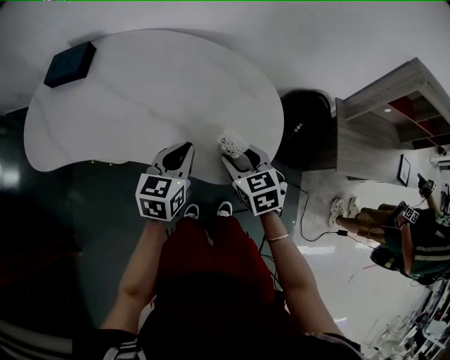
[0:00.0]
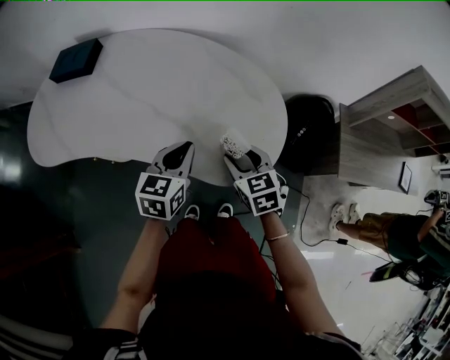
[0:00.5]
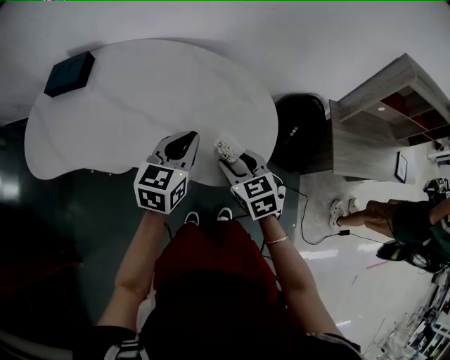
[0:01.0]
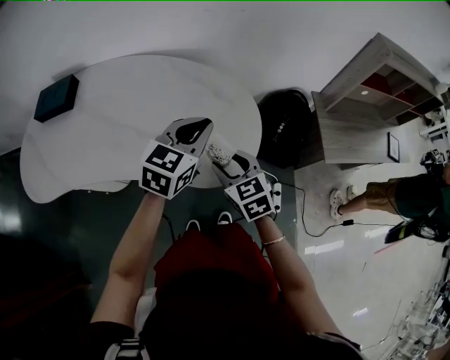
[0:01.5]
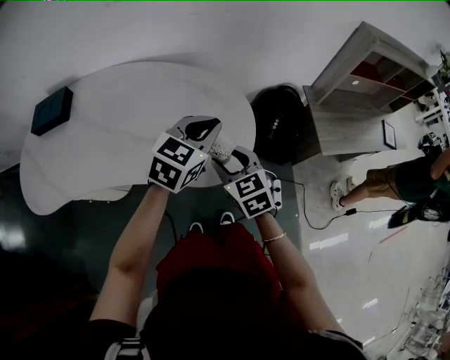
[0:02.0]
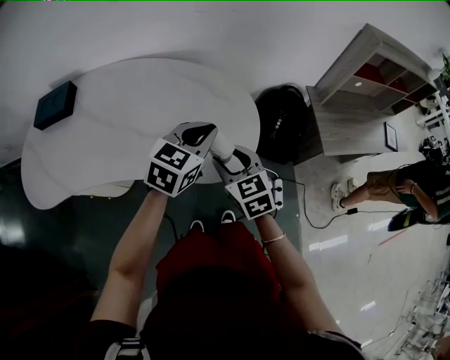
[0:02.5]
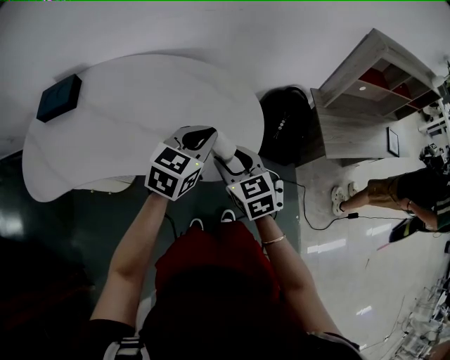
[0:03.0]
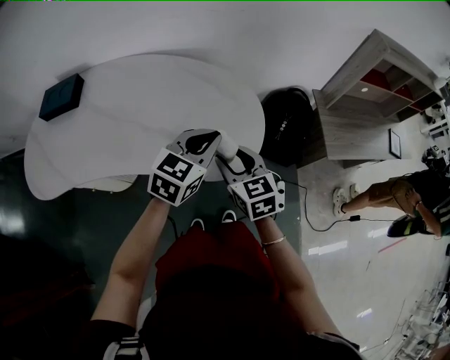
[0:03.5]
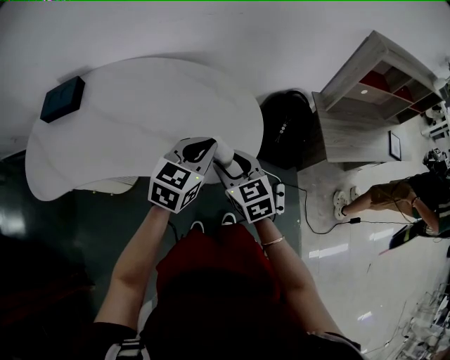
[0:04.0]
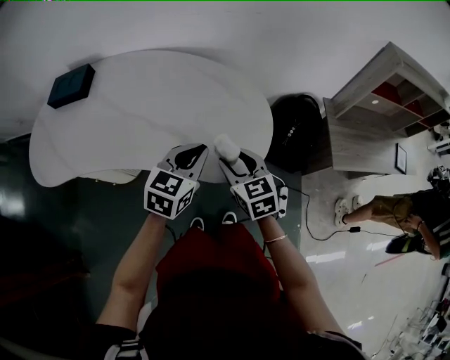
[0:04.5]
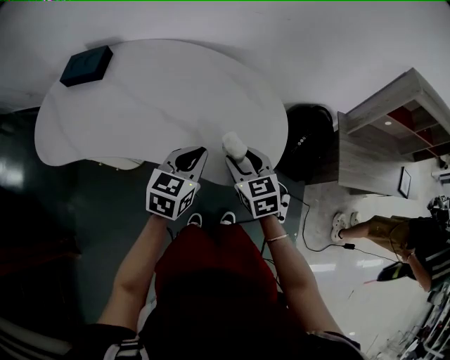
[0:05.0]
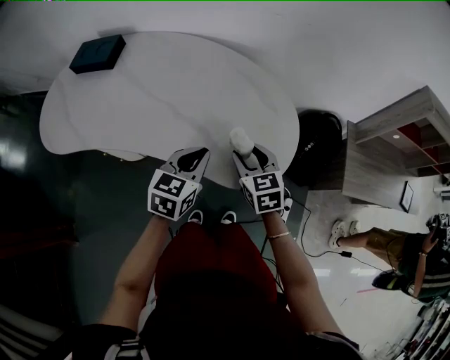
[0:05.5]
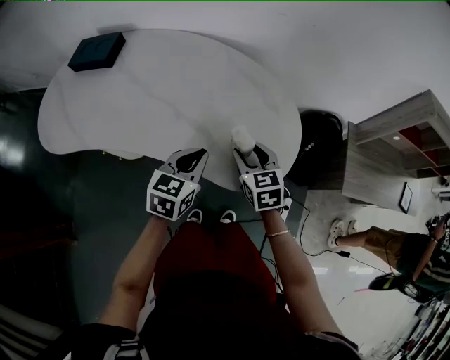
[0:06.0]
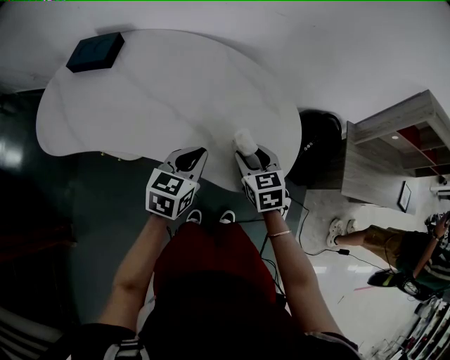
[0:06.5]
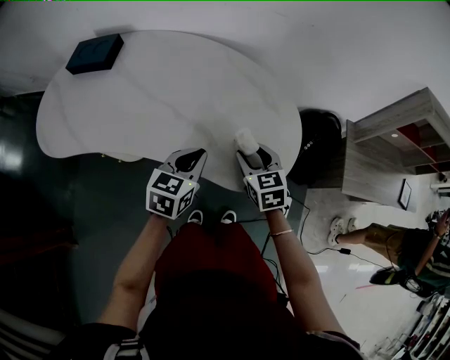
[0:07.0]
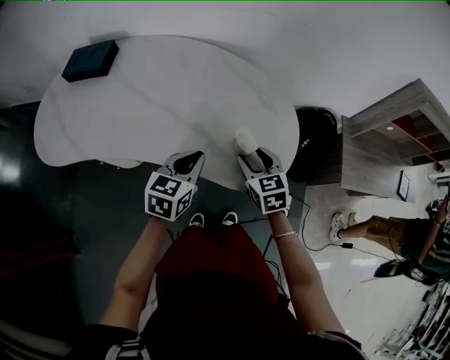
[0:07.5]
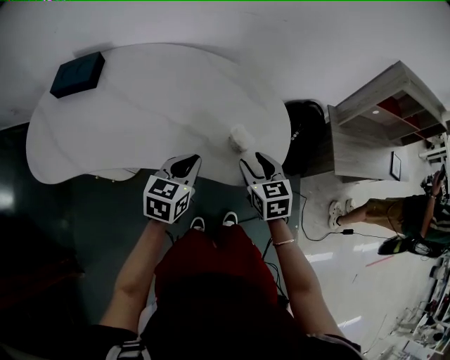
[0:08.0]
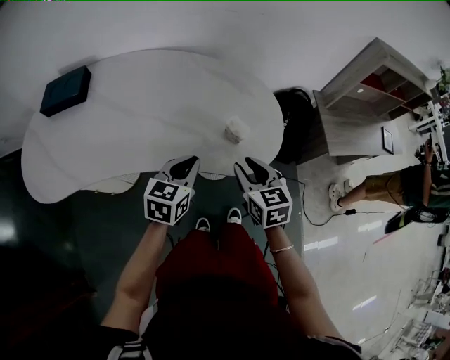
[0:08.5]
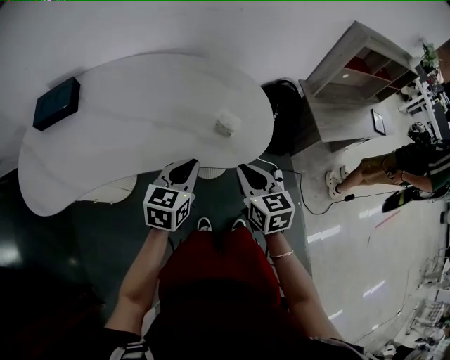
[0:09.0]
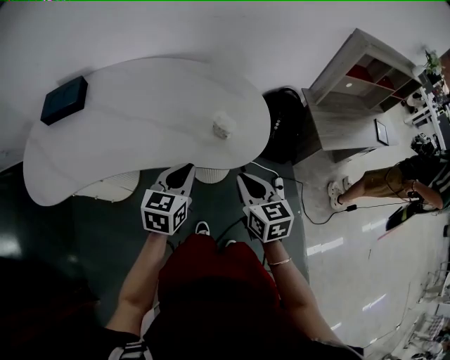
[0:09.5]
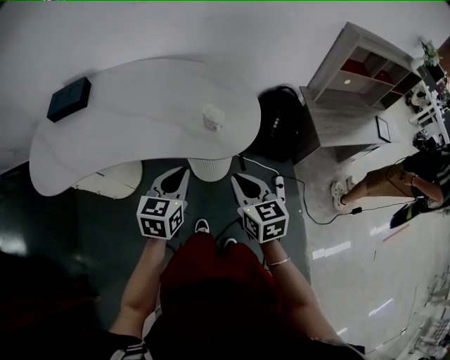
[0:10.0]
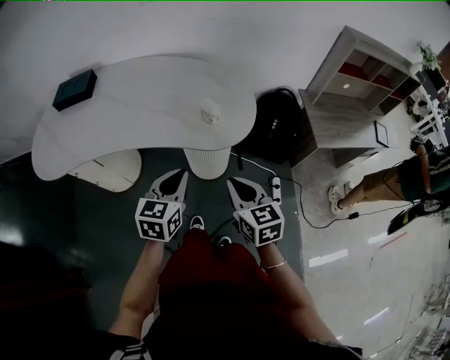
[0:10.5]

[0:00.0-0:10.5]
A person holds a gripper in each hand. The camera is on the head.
0:00.0 to 0:02.0: The left gripper heads to the right and upward, covering roughly 15 cm, and turns by approximately 30 degrees. The right gripper moves roughly 5 cm.
0:02.0 to 0:04.0: The left gripper changes place by some 5 cm.
0:04.0 to 0:06.5: The left gripper moves to the left and downward, about 15 cm, and rotates approximately 20 degrees. Meanwhile the right gripper is displaced forward and downward by approximately 10 cm.
0:06.5 to 0:08.5: The right gripper goes some 10 cm backward.
0:08.5 to 0:10.5: The left gripper travels backward and to the right by about 15 cm, while the right gripper travels backward by roughly 15 cm, and closes its fingers.

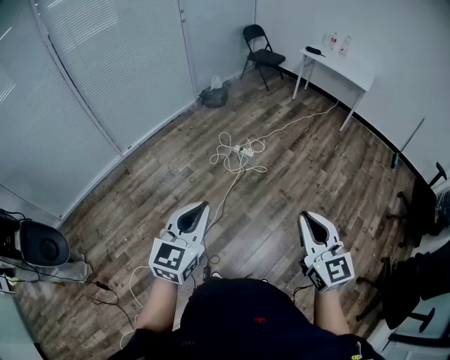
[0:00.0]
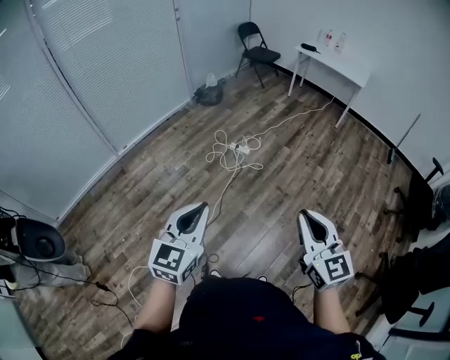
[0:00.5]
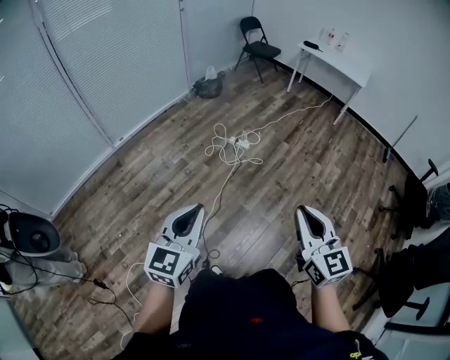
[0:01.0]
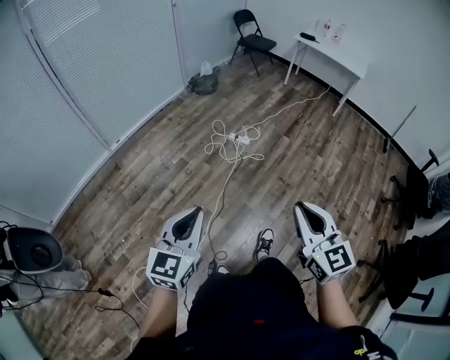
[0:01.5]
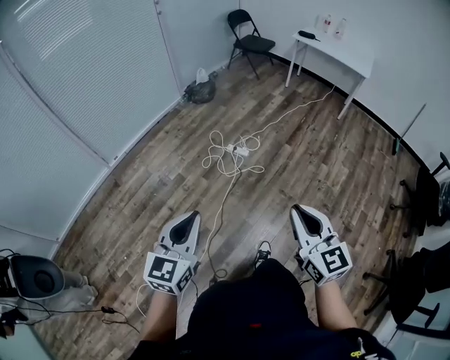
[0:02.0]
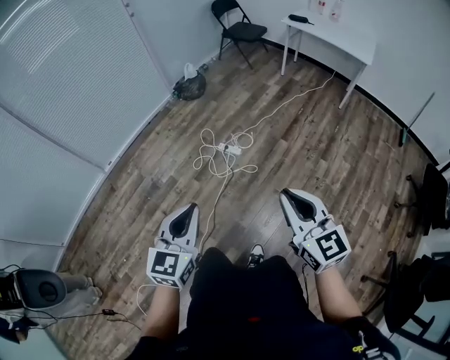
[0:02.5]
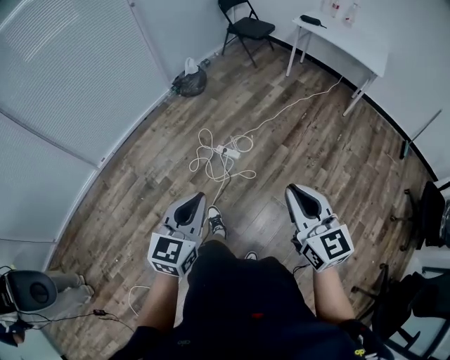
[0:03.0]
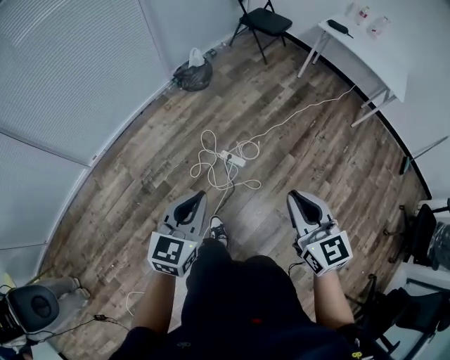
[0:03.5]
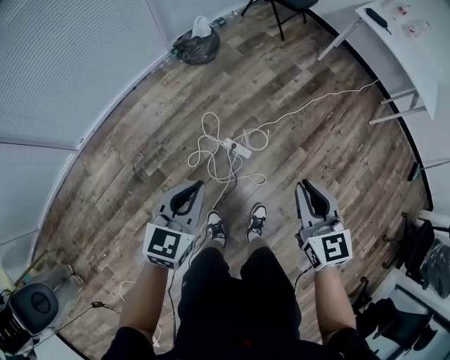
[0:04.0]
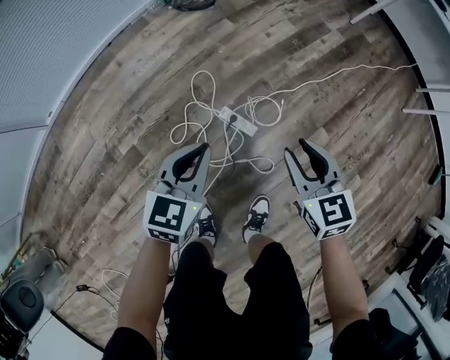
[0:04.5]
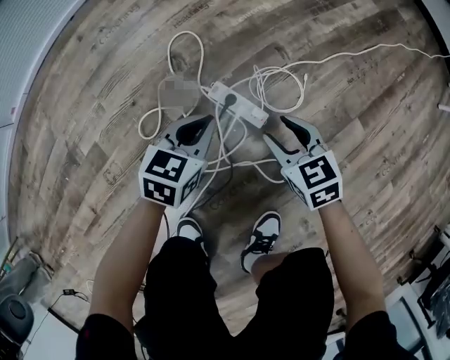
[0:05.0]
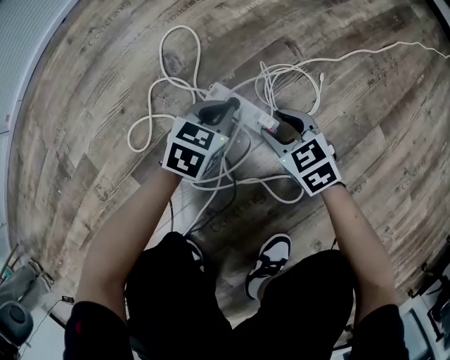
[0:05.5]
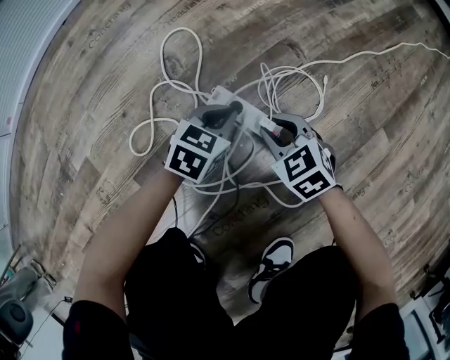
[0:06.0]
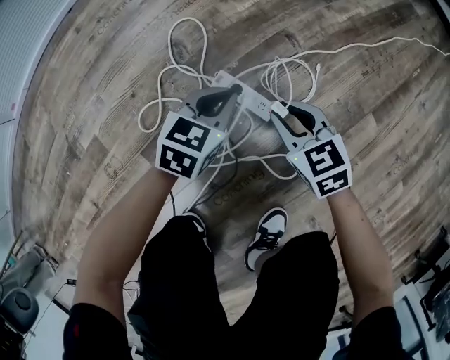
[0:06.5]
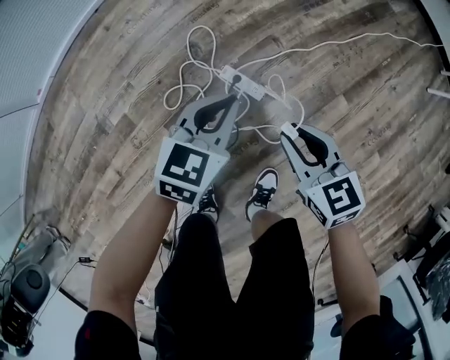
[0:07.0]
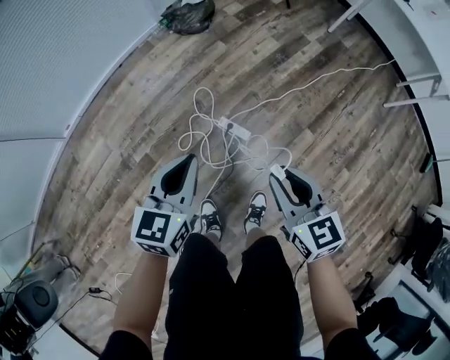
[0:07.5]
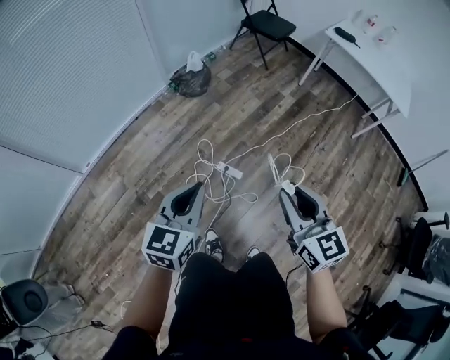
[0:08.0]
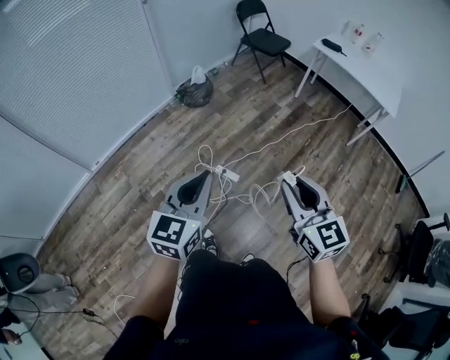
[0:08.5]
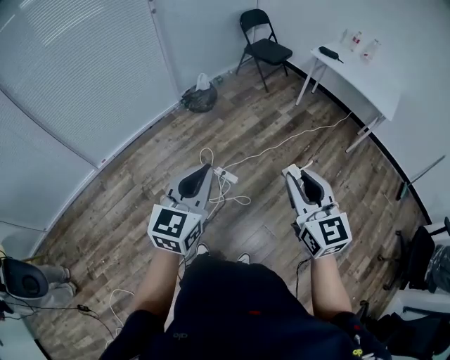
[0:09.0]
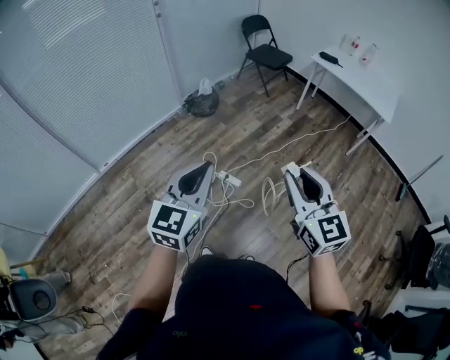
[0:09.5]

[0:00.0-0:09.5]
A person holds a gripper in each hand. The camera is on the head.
0:00.0 to 0:02.0: The two grippers go some 20 cm forward.
0:02.0 to 0:04.0: Both grippers are carried forward, about 70 cm.
0:04.0 to 0:05.5: Both grippers move downward, about 90 cm. The left gripper changes its angle by about 20 degrees; the right gripper rotates roughly 40 degrees, and opens up.
0:05.5 to 0:07.5: The two grippers go some 70 cm upward. The right gripper swivels roughly 30 degrees, and closes up. The left gripper rotates some 30 degrees.
0:07.5 to 0:09.5: The two grippers go approximately 50 cm upward and backward. The left gripper changes its angle by some 20 degrees. The right gripper rotates about 30 degrees.

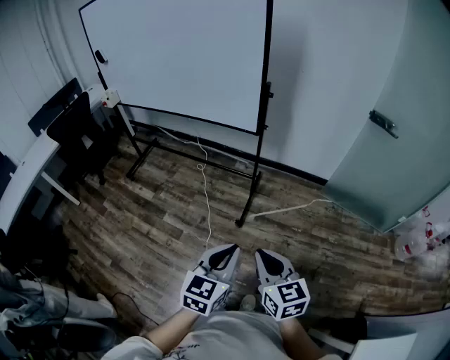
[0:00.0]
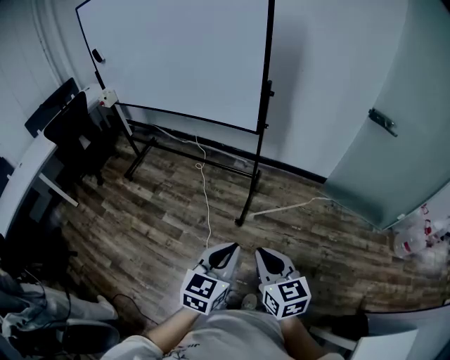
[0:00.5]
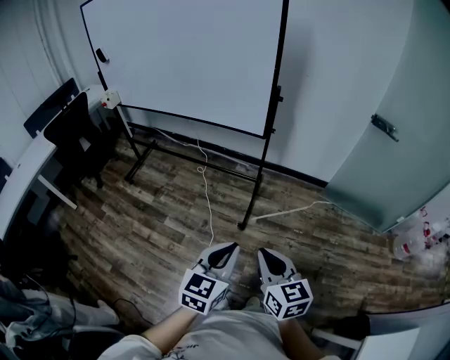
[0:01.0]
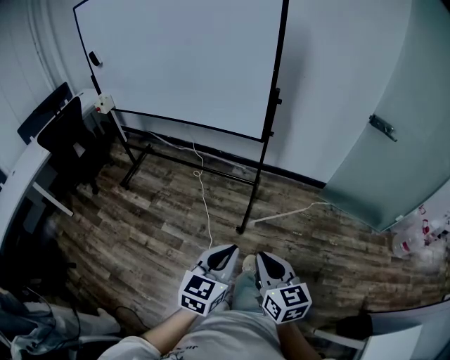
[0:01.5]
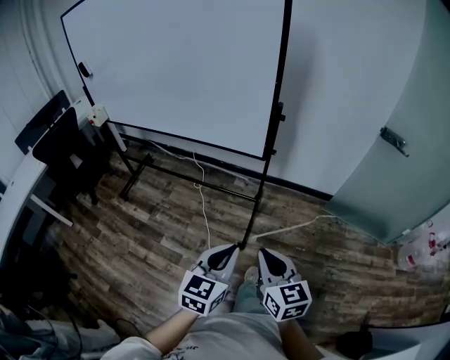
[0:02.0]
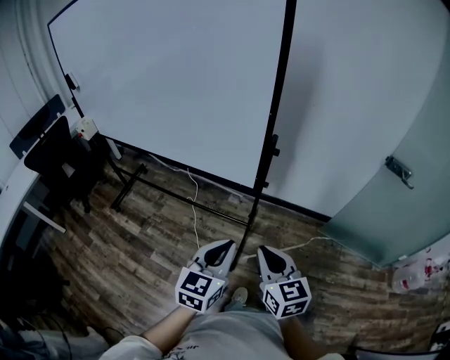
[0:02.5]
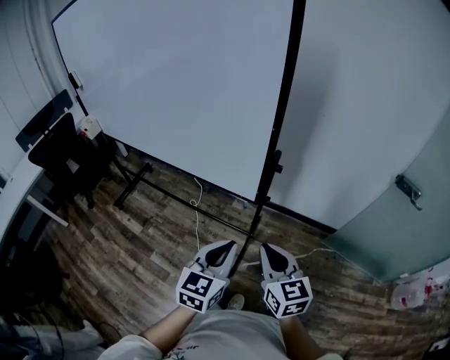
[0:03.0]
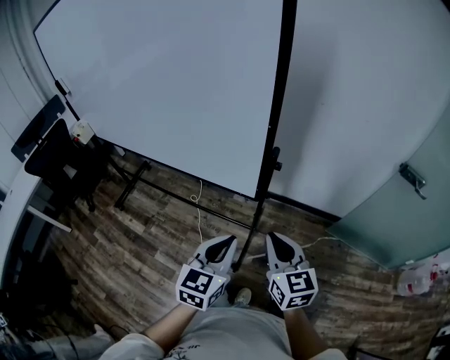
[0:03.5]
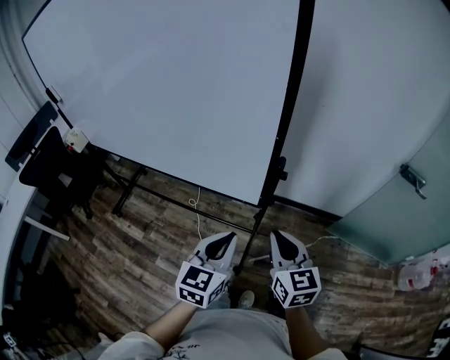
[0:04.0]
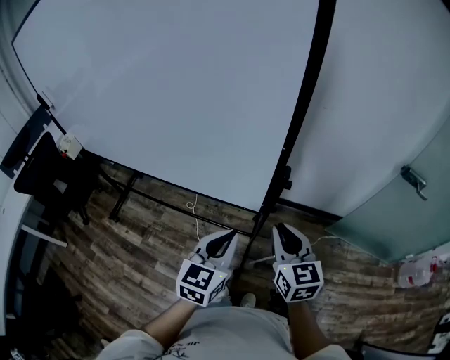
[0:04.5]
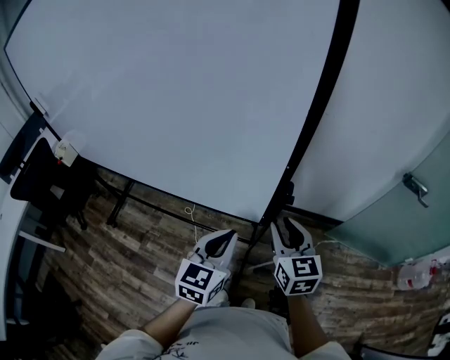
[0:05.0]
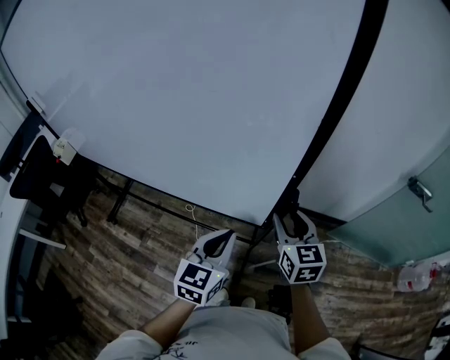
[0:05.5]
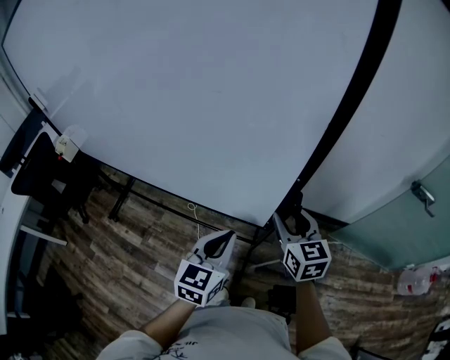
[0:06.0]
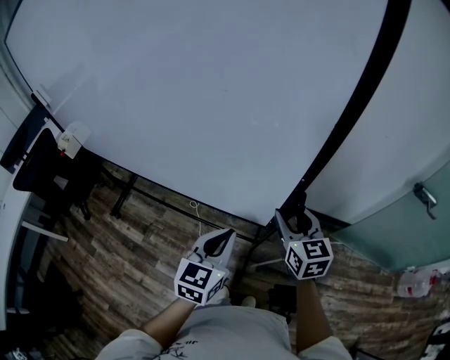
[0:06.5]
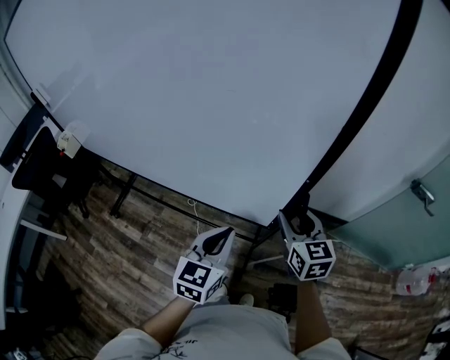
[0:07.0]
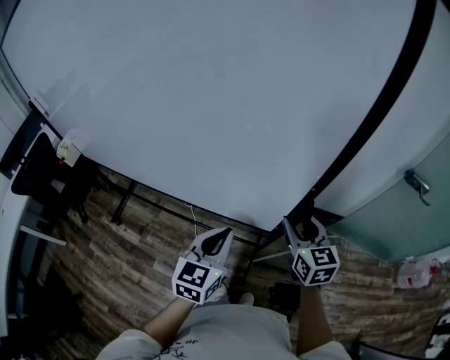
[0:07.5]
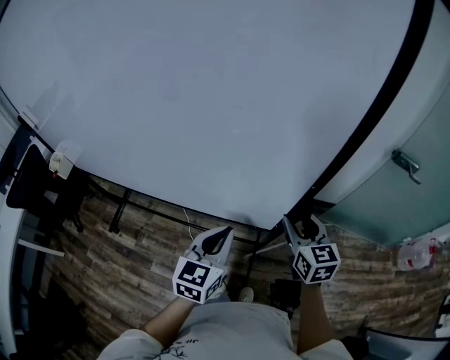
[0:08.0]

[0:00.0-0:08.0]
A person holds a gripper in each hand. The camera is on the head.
0:00.0 to 0:02.0: Both grippers move forward, some 15 cm.
0:02.0 to 0:04.0: The grippers both shift forward by roughly 30 cm.
0:04.0 to 0:06.0: The right gripper goes roughly 15 cm forward, and opens its fingers; the left gripper travels forward by about 10 cm.
0:06.0 to 0:08.0: The left gripper is displaced to the right and backward by about 10 cm. The right gripper travels to the right and backward by about 15 cm.
